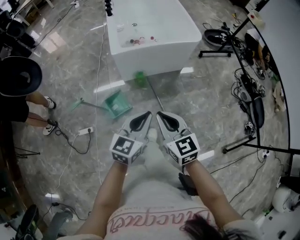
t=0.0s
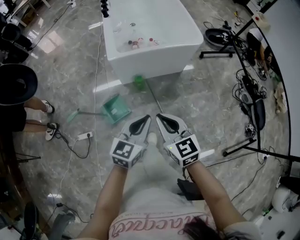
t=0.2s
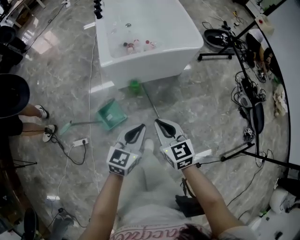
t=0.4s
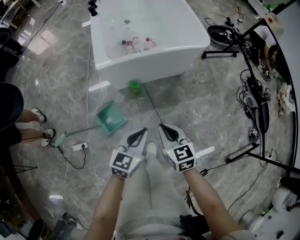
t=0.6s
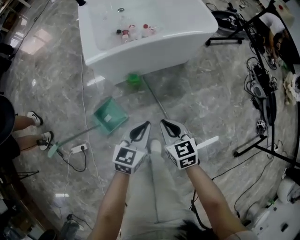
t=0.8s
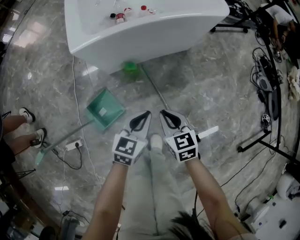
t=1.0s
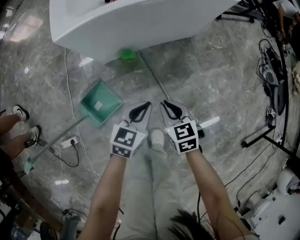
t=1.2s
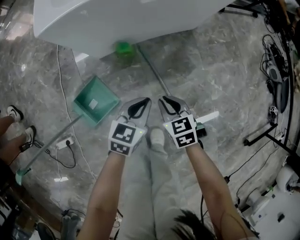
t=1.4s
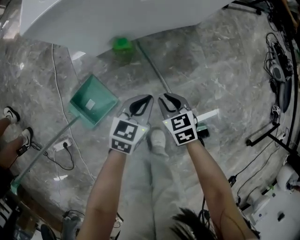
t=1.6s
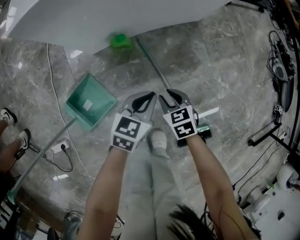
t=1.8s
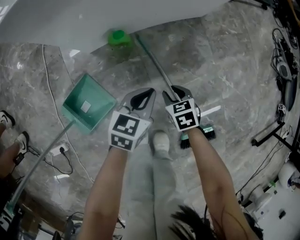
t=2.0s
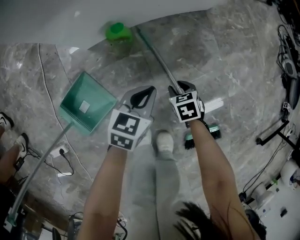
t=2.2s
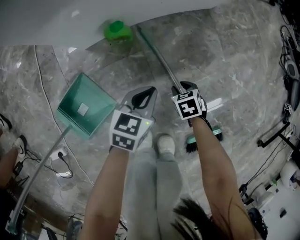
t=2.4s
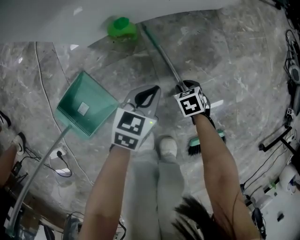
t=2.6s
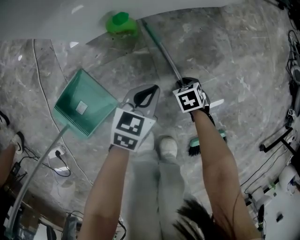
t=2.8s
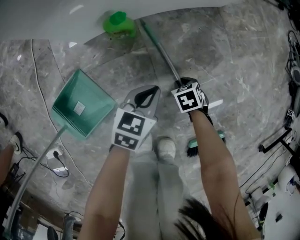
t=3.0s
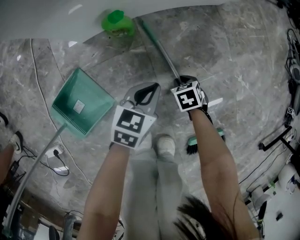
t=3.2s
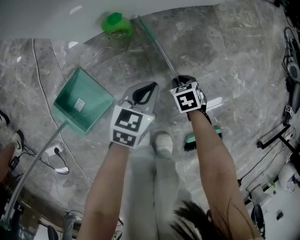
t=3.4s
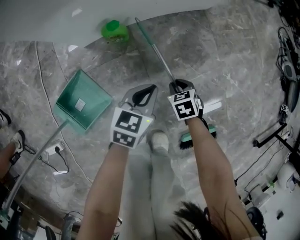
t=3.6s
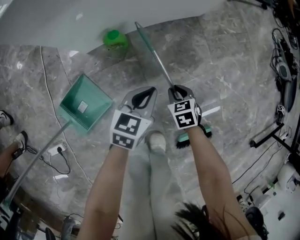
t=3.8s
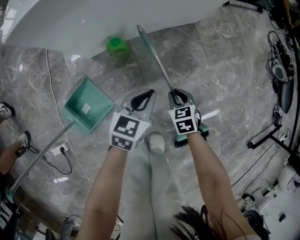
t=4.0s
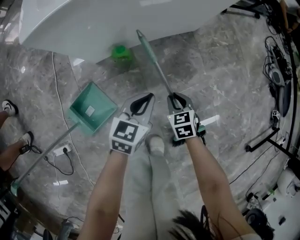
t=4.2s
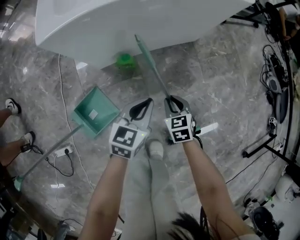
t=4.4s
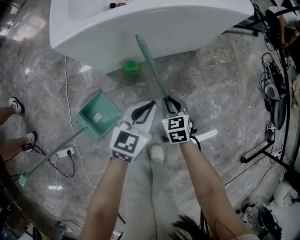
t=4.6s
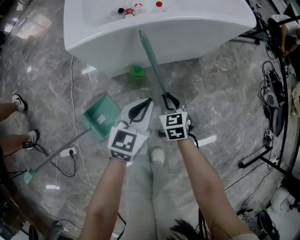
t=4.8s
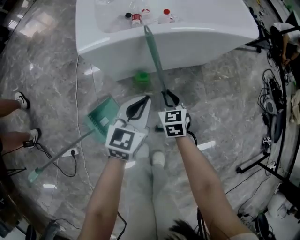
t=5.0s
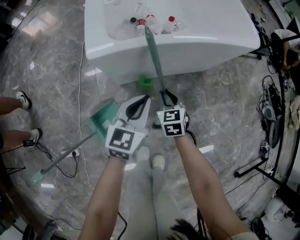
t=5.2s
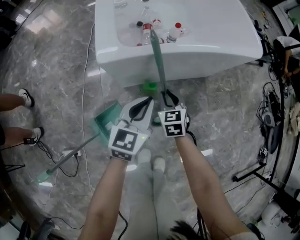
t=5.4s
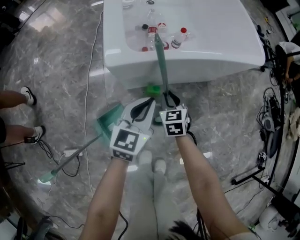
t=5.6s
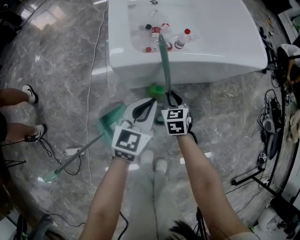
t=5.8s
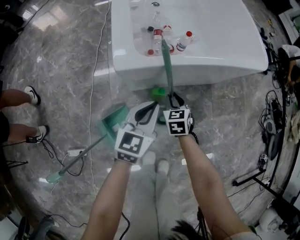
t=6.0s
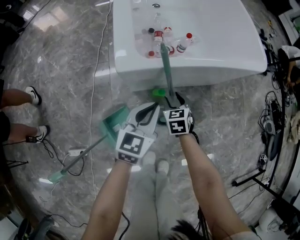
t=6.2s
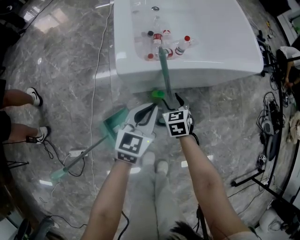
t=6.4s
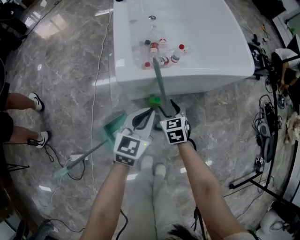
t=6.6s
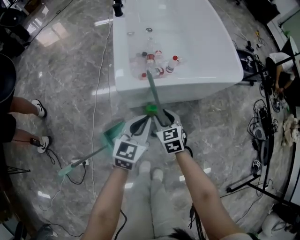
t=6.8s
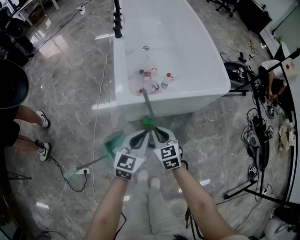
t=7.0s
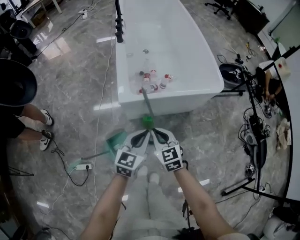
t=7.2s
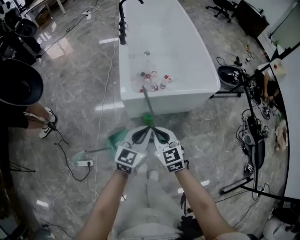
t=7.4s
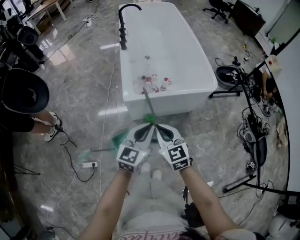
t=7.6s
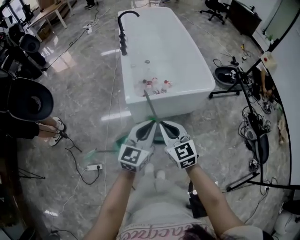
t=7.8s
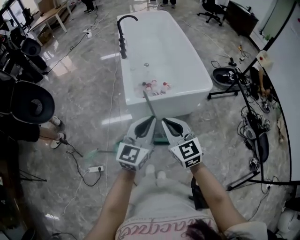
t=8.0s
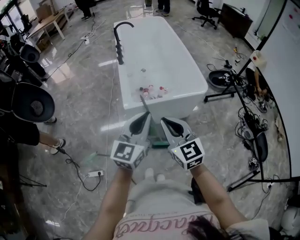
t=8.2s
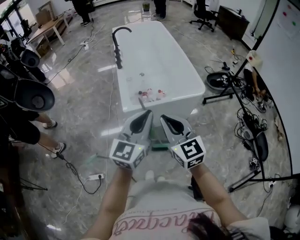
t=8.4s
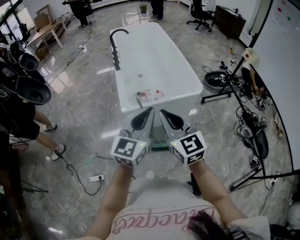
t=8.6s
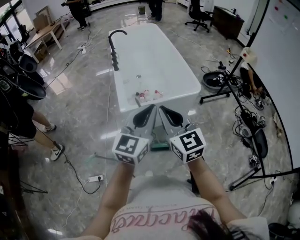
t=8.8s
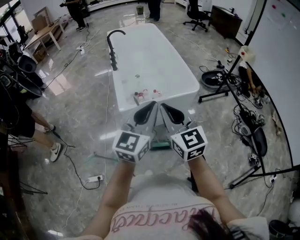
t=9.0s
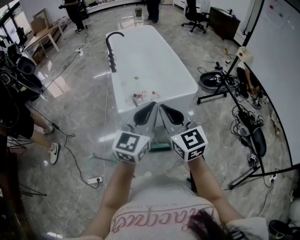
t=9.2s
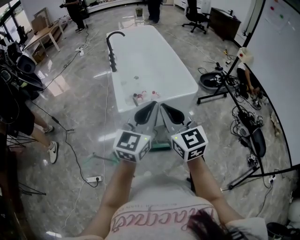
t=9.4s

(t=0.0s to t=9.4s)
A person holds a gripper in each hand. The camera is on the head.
t=0.0s - t=1.6s: Both grippers move downward, some 40 cm. The right gripper tilts its fingers approximately 30 degrees downward; the left gripper swivels about 20 degrees.
t=1.6s - t=3.2s: The left gripper travels downward by approximately 15 cm, while the right gripper shifts some 20 cm downward, and rotates some 20 degrees.
t=3.2s - t=4.8s: Both grippers move upward, about 25 cm. The right gripper angles its fingers upward, by roughly 30 degrees. Meanwhile the left gripper changes its angle by approximately 20 degrees.
t=4.8s - t=6.2s: The left gripper moves to the left, upward and forward, about 10 cm; the right gripper heads to the left and forward, covering roughly 10 cm, and opens up.
t=6.2s - t=7.8s: Both grippers travel together upward, about 35 cm. The right gripper points its fingers about 30 degrees further upward, and closes.
t=7.8s - t=9.4s: Both grippers travel together upward, approximately 15 cm.

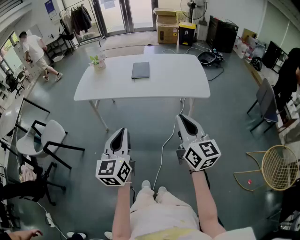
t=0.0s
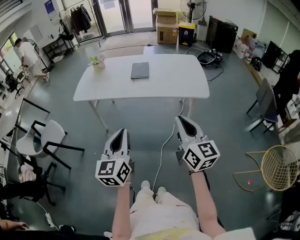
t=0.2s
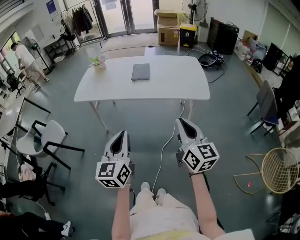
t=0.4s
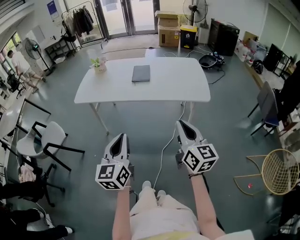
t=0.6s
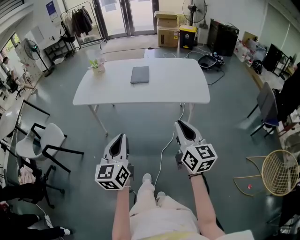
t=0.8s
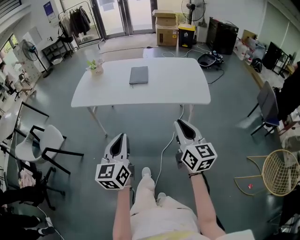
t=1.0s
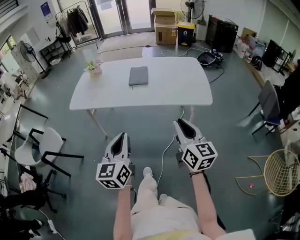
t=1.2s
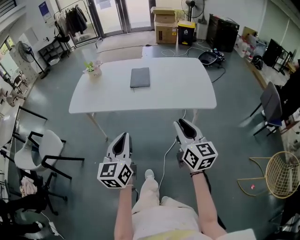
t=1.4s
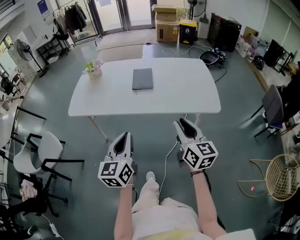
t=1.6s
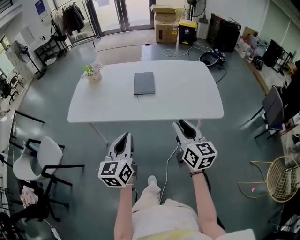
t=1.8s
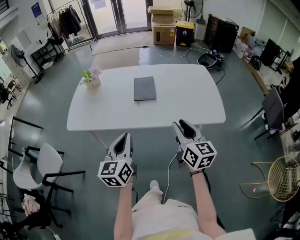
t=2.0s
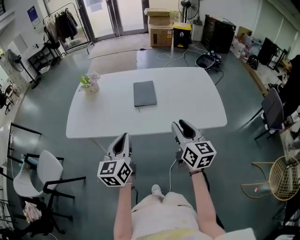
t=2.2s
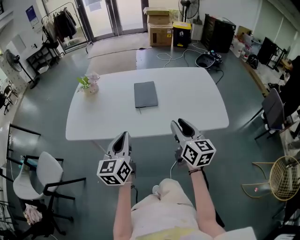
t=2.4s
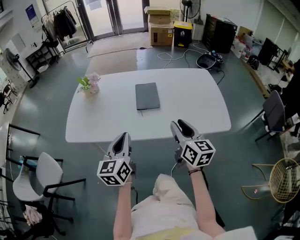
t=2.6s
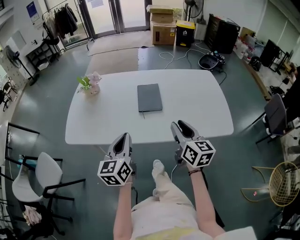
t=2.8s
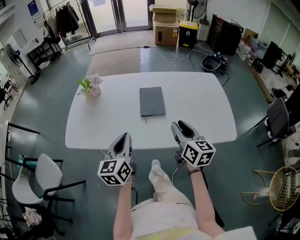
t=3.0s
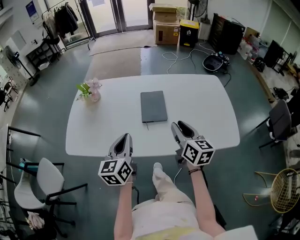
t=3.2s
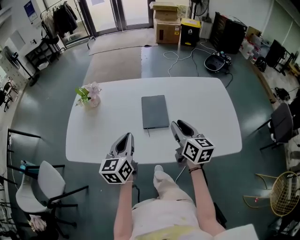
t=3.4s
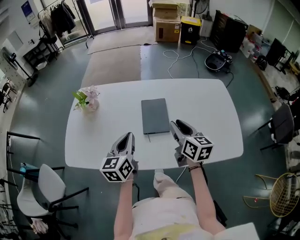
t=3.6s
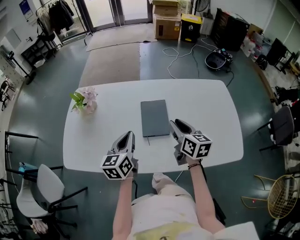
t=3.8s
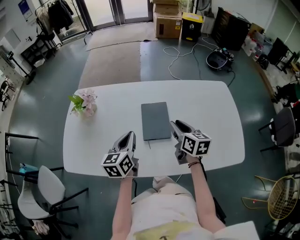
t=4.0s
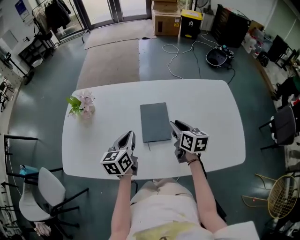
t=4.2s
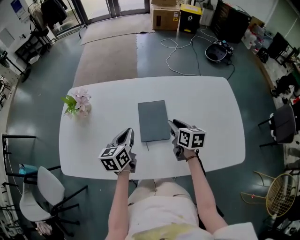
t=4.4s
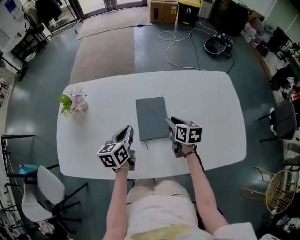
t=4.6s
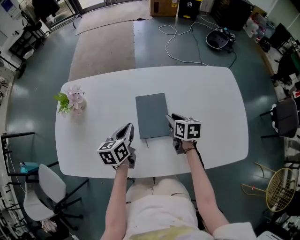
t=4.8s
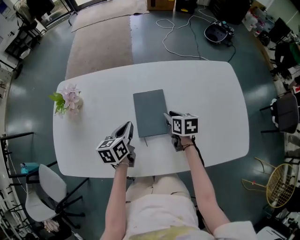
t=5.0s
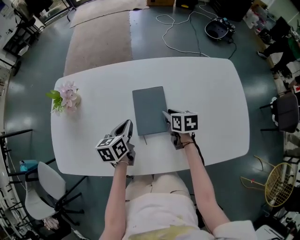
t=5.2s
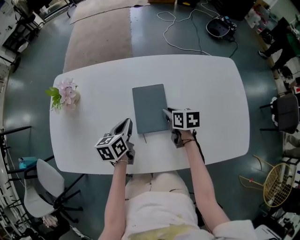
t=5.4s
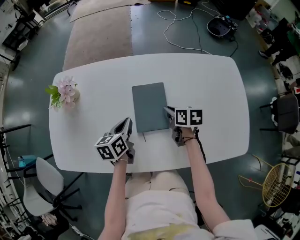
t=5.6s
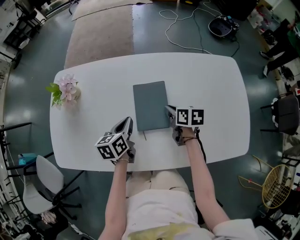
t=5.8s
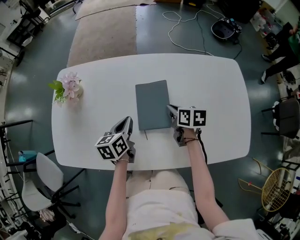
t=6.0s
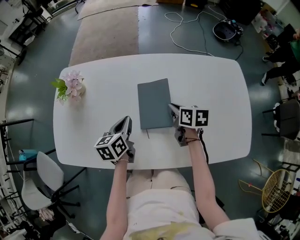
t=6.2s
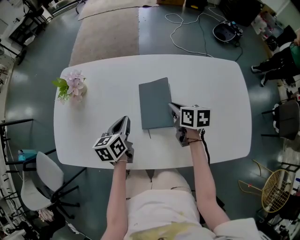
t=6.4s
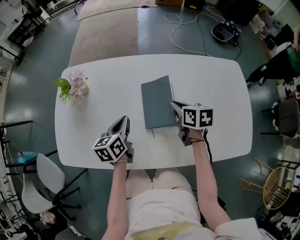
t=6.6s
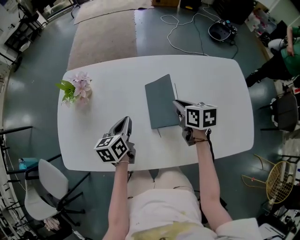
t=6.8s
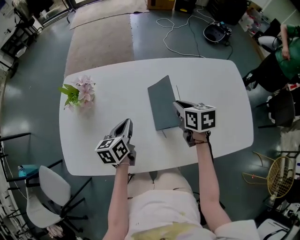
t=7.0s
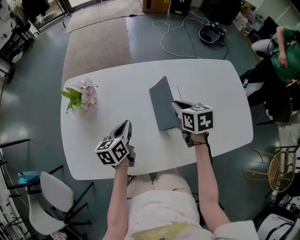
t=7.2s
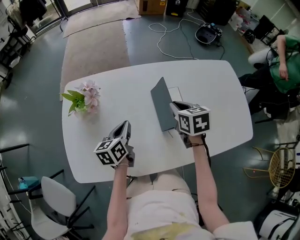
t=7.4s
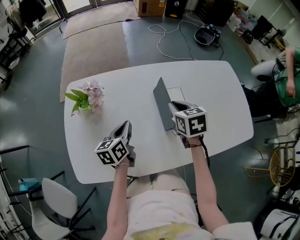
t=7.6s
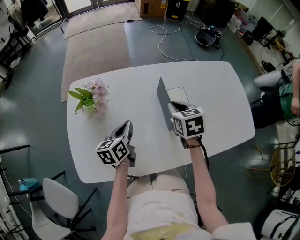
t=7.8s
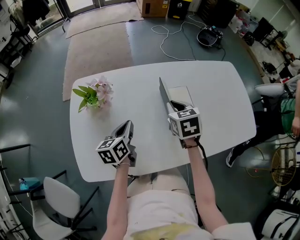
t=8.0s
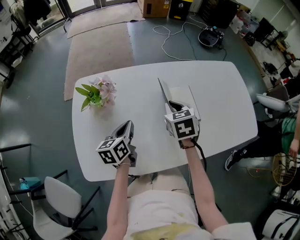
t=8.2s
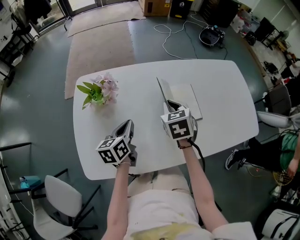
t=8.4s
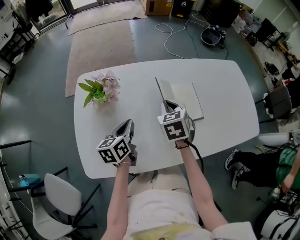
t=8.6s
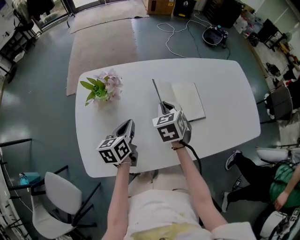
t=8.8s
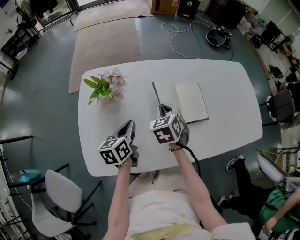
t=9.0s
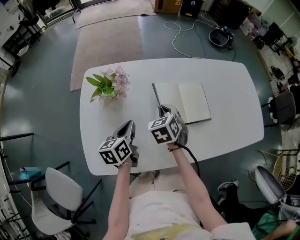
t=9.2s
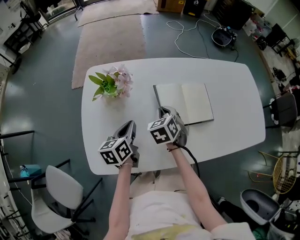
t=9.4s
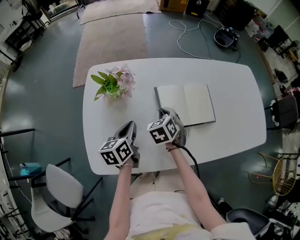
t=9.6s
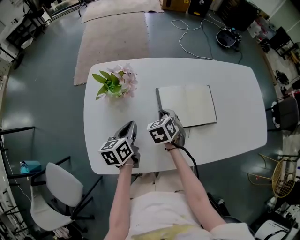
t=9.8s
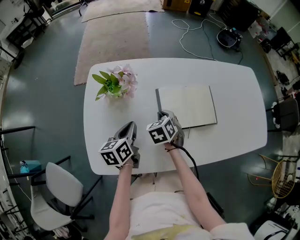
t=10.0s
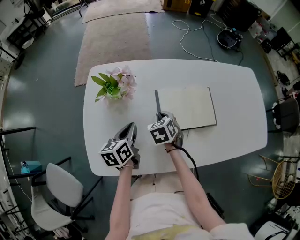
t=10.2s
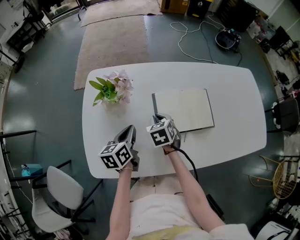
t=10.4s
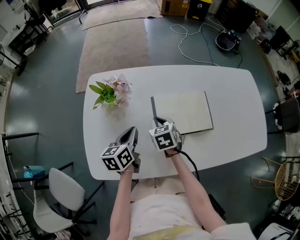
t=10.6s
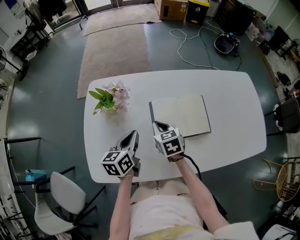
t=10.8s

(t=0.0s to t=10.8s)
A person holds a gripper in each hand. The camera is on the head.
t=0.0s - t=1.6s: Both grippers travel together forward, approximately 20 cm. The right gripper opens its fingers.
t=1.6s - t=3.0s: The two grippers go about 25 cm forward.
t=3.0s - t=4.6s: The grippers both shift forward and downward by about 30 cm. The right gripper swivels roughly 30 degrees; the left gripper turns by approximately 20 degrees.
t=4.6s - t=6.2s: The grippers stay close to where they were, moving slightly.
t=6.2s - t=7.8s: The right gripper heads to the left and upward, covering about 20 cm, and changes its angle by roughly 30 degrees; the left gripper travels to the left by roughly 15 cm.
t=7.8s - t=9.2s: The left gripper shifts some 5 cm to the left, while the right gripper shifts some 15 cm to the left and downward, and changes its angle by roughly 20 degrees.
t=9.2s - t=10.8s: The right gripper turns by about 20 degrees.

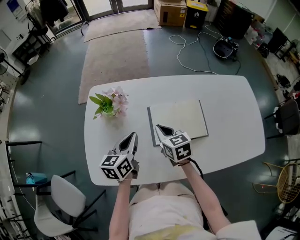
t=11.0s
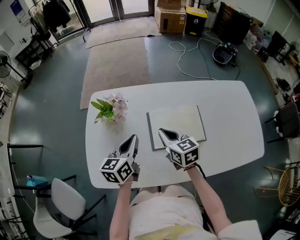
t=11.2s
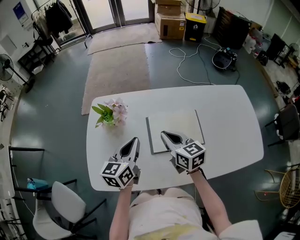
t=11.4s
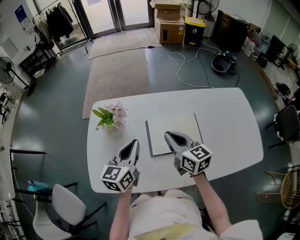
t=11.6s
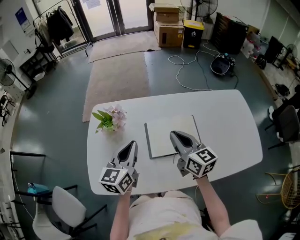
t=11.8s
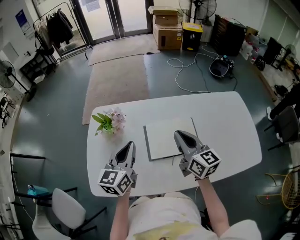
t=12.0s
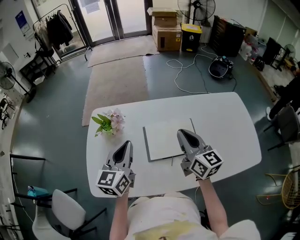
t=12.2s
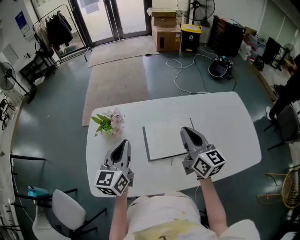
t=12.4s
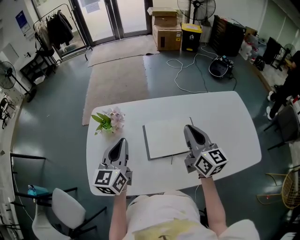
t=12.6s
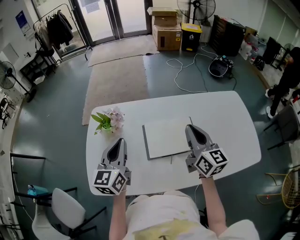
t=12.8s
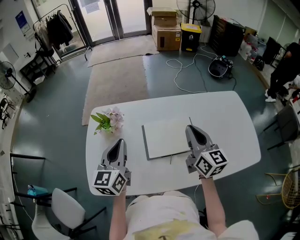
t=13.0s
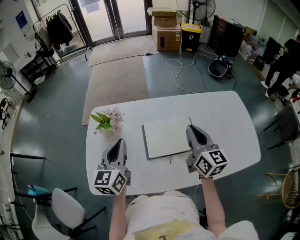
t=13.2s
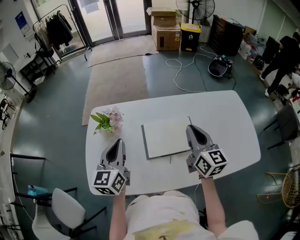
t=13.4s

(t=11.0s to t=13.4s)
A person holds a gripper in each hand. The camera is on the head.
t=11.0s - t=12.2s: The right gripper shifts roughly 20 cm upward and to the right, and tips its fingers upward by roughly 30 degrees. The left gripper travels upward by roughly 10 cm, and changes its angle by roughly 20 degrees.
t=12.2s - t=13.4s: The grippers move only a little.

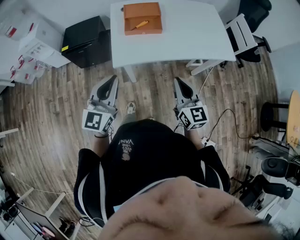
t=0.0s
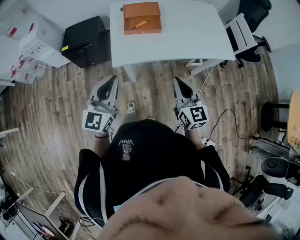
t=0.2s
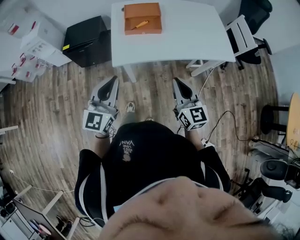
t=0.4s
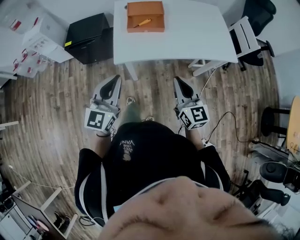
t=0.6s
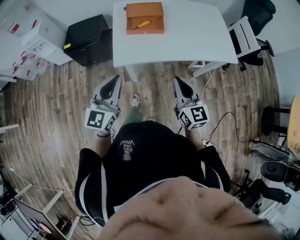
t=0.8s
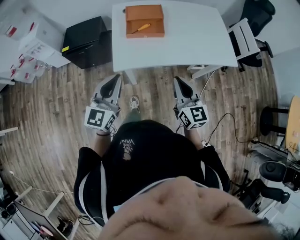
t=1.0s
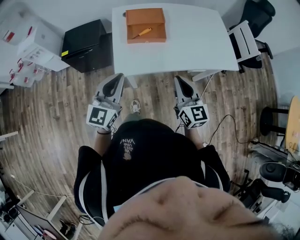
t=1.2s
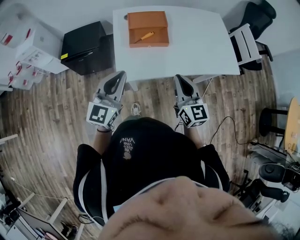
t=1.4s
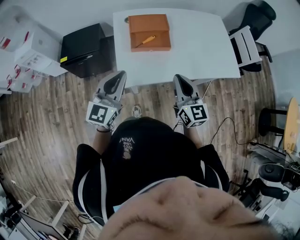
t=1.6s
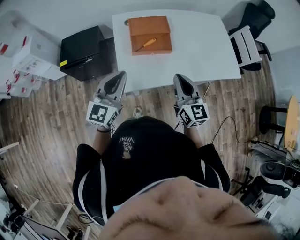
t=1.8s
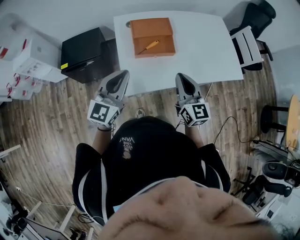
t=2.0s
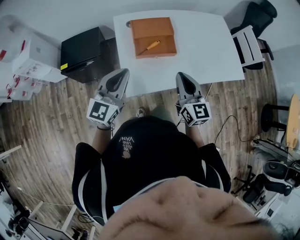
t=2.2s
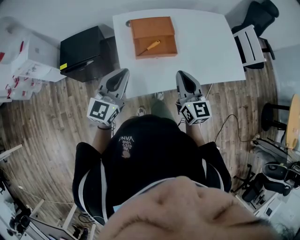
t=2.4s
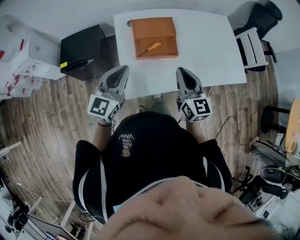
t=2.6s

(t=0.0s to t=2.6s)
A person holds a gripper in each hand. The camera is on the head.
t=0.0s - t=1.2s: The two grippers go some 10 cm forward.
t=1.2s - t=2.6s: The left gripper is displaced forward by about 15 cm. The right gripper shifts some 20 cm forward and to the left.
